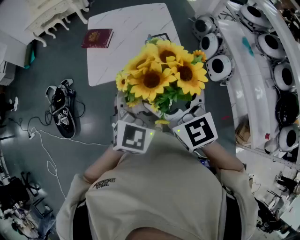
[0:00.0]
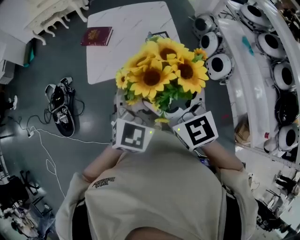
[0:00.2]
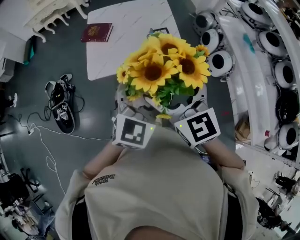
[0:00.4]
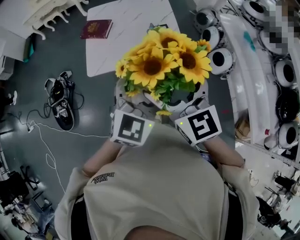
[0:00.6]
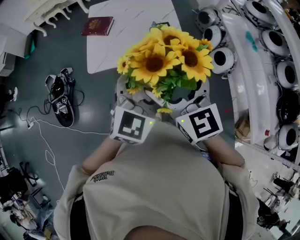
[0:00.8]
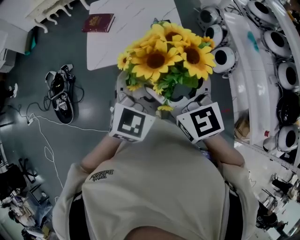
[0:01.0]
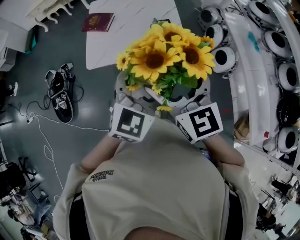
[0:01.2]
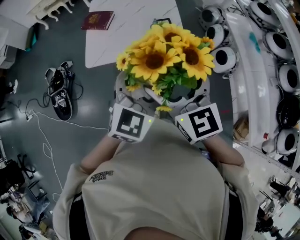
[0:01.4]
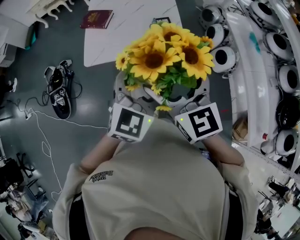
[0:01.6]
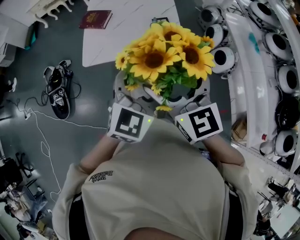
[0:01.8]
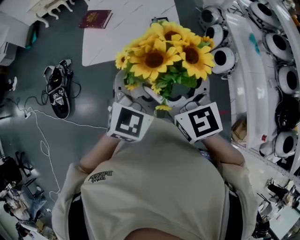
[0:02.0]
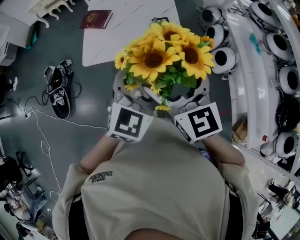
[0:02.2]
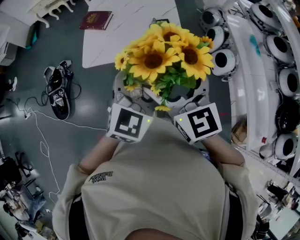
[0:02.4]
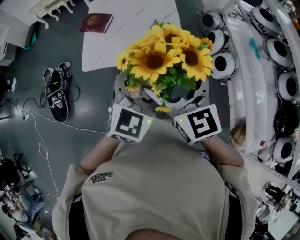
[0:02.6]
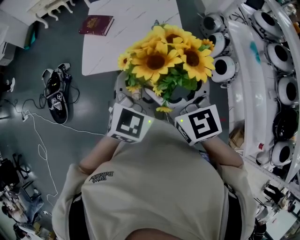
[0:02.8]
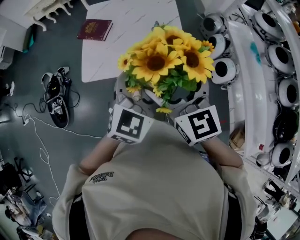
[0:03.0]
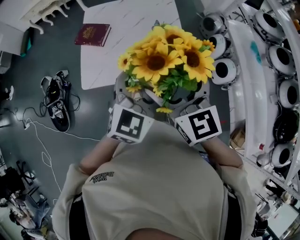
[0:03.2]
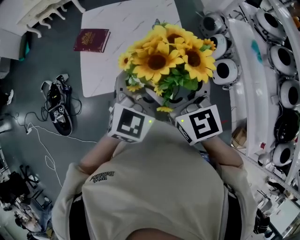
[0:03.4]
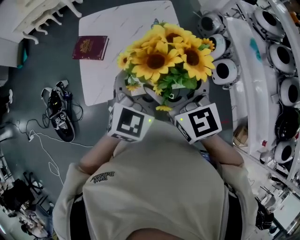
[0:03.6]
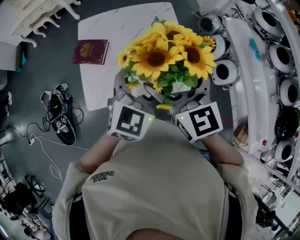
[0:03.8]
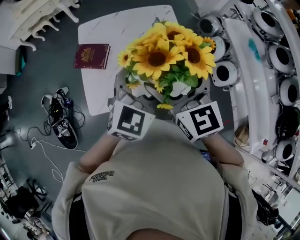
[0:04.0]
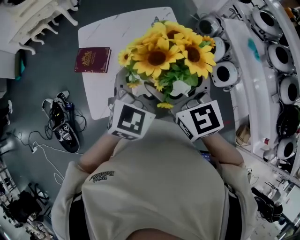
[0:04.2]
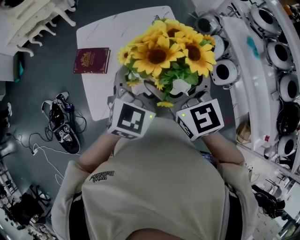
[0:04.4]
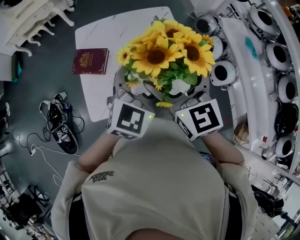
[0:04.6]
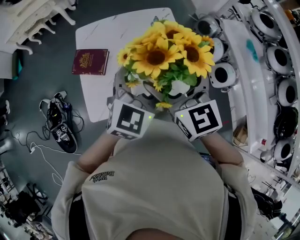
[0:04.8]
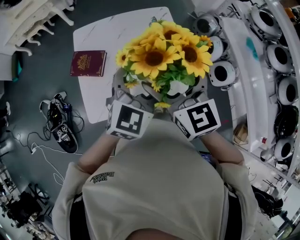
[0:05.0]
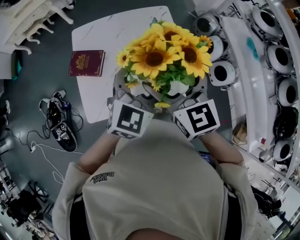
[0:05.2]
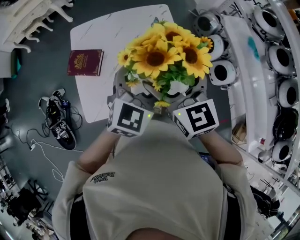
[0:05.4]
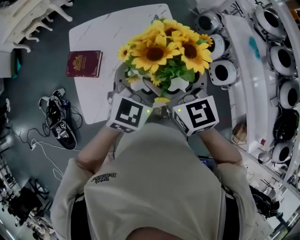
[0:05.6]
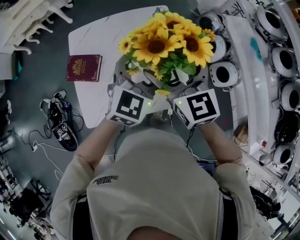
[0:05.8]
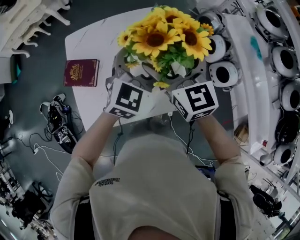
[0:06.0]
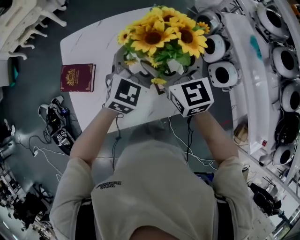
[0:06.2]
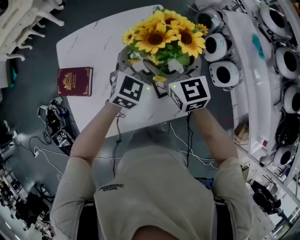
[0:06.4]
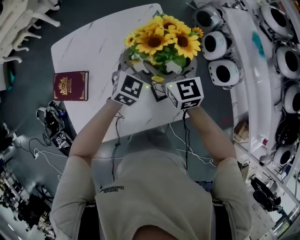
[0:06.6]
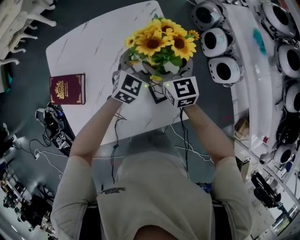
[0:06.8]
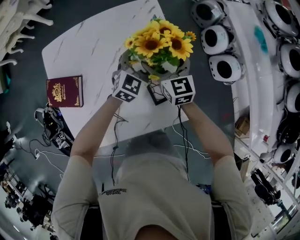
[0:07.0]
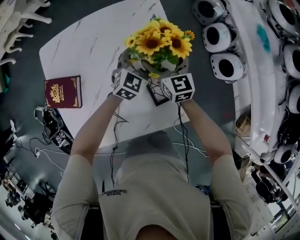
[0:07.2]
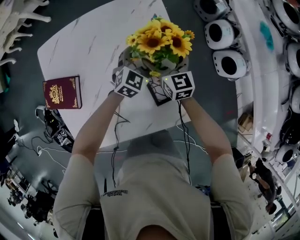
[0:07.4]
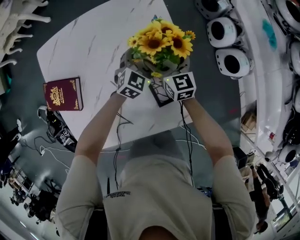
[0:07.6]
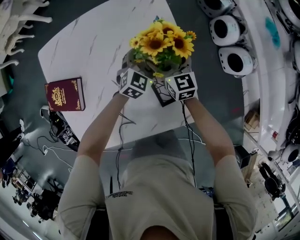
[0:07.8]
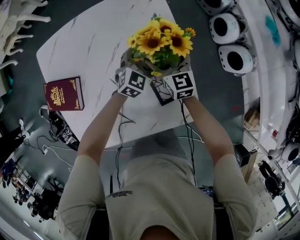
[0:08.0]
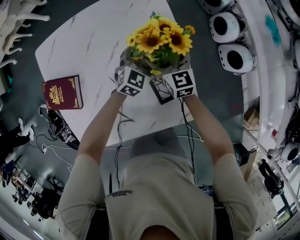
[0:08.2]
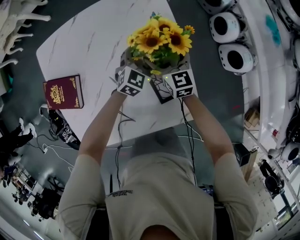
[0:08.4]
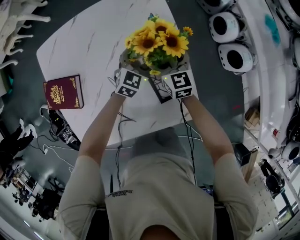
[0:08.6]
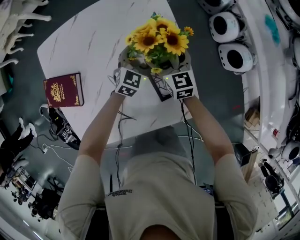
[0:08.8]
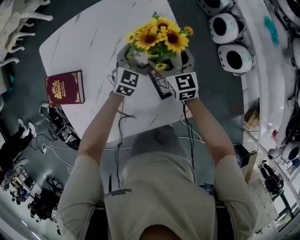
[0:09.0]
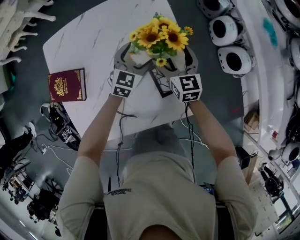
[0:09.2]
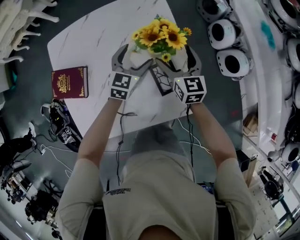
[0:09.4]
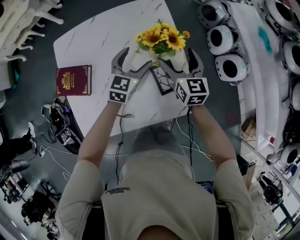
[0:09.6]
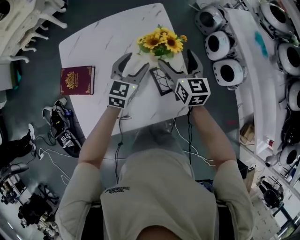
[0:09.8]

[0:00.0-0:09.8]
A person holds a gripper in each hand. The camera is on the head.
0:00.0 to 0:01.4: The grippers move only a little.
0:01.4 to 0:02.8: Both grippers travel together forward, some 5 cm.
0:02.8 to 0:04.2: The grippers both shift forward by some 25 cm.
0:04.2 to 0:05.6: Both grippers move forward, some 10 cm.
0:05.6 to 0:07.0: Both grippers move downward and forward, some 35 cm.
0:07.0 to 0:08.4: Both grippers travel together downward, roughly 10 cm.
0:08.4 to 0:09.8: The left gripper goes some 20 cm upward and backward. Meanwhile the right gripper travels upward by about 15 cm.

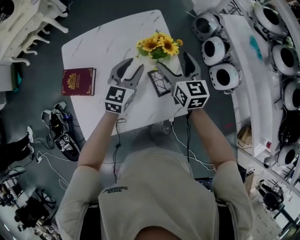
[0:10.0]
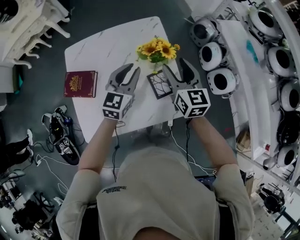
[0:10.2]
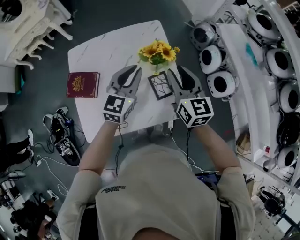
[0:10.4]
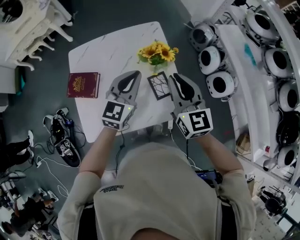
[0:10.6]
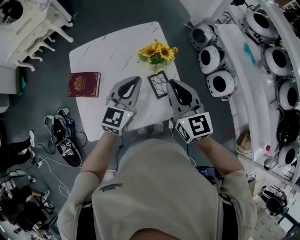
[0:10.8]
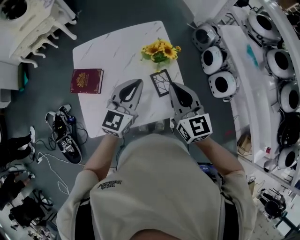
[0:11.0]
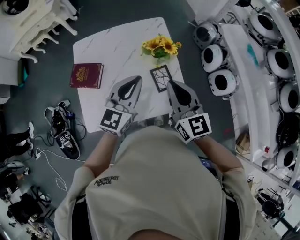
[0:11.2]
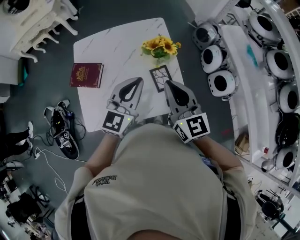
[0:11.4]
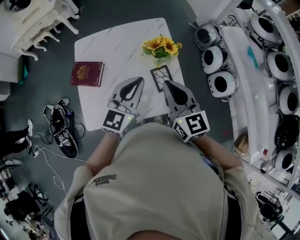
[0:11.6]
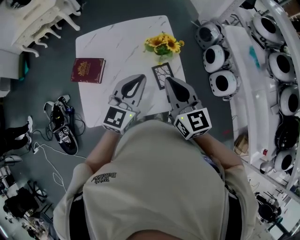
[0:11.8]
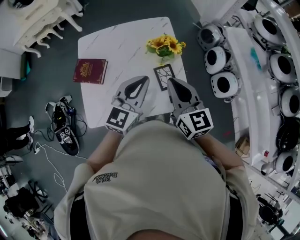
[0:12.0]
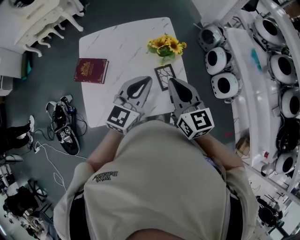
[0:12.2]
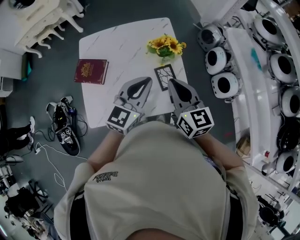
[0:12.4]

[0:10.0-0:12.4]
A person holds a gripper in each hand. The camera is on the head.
0:10.0 to 0:11.2: Both grippers move backward and upward, approximately 20 cm. The left gripper closes its fingers. Meanwhile the right gripper closes up.
0:11.2 to 0:12.4: The grippers move only a little.

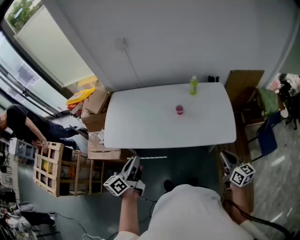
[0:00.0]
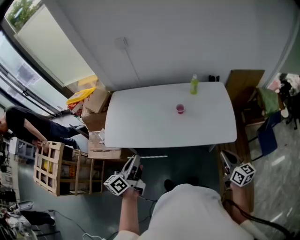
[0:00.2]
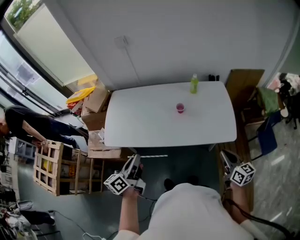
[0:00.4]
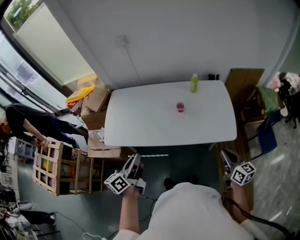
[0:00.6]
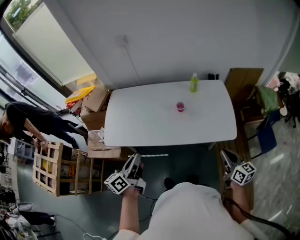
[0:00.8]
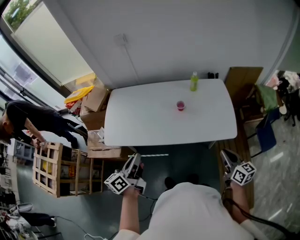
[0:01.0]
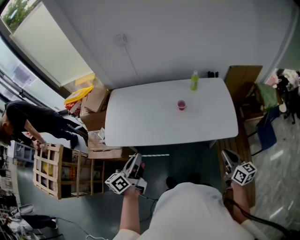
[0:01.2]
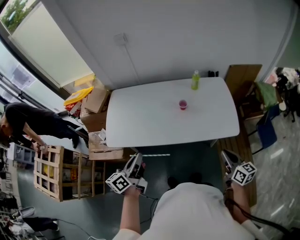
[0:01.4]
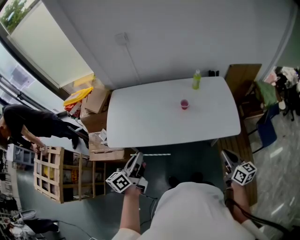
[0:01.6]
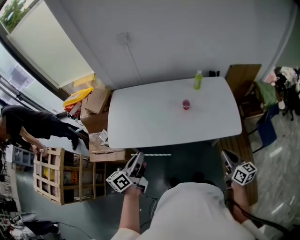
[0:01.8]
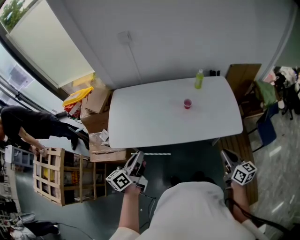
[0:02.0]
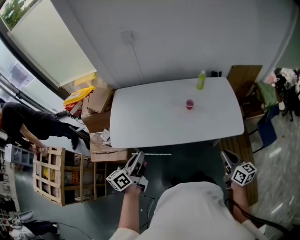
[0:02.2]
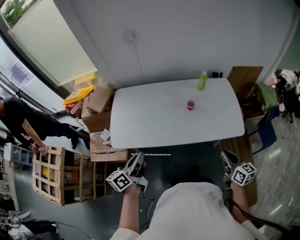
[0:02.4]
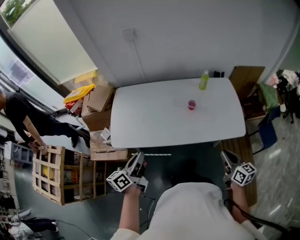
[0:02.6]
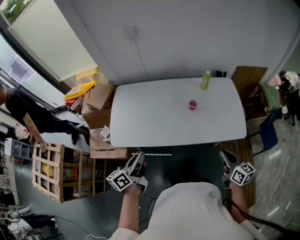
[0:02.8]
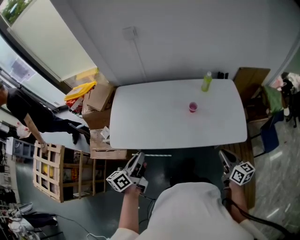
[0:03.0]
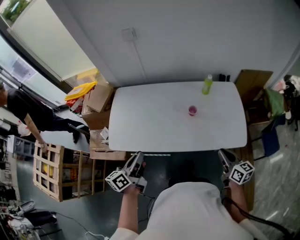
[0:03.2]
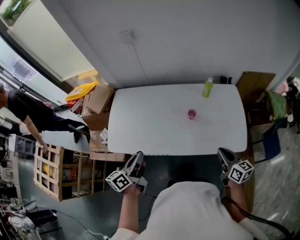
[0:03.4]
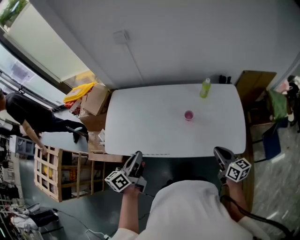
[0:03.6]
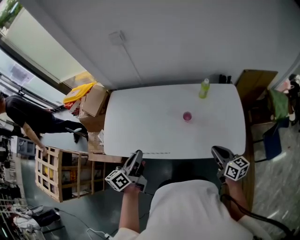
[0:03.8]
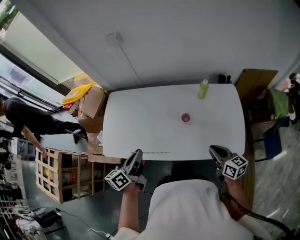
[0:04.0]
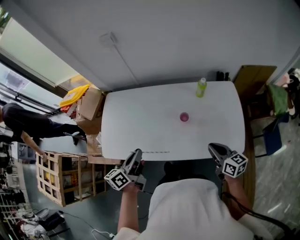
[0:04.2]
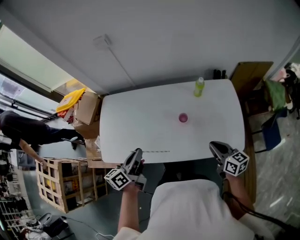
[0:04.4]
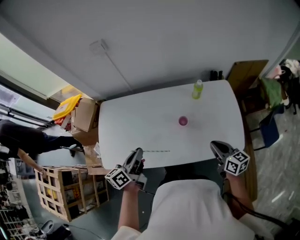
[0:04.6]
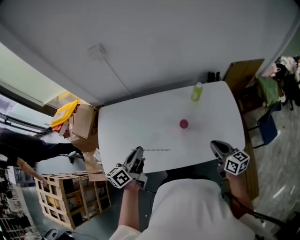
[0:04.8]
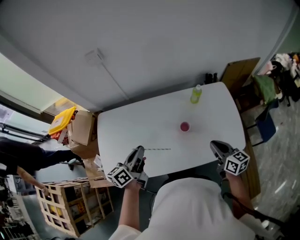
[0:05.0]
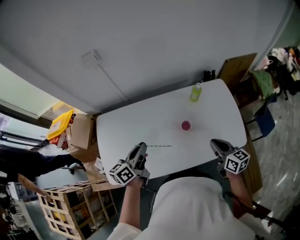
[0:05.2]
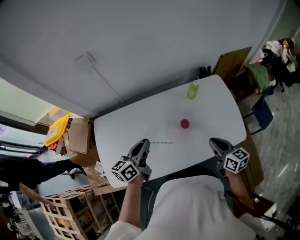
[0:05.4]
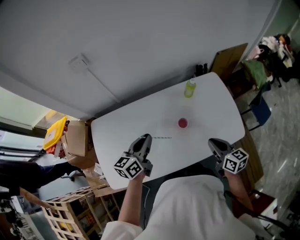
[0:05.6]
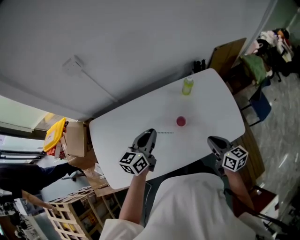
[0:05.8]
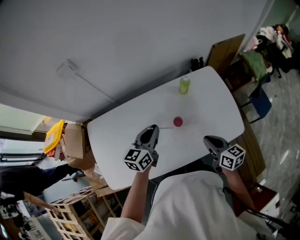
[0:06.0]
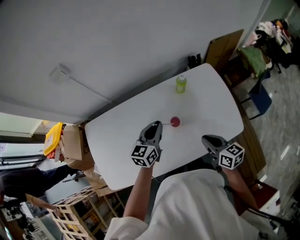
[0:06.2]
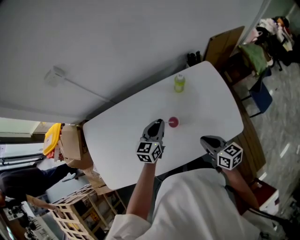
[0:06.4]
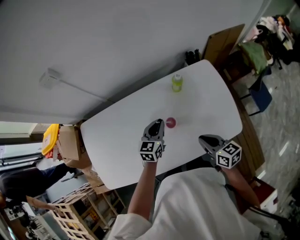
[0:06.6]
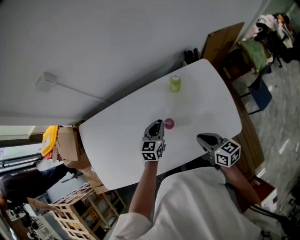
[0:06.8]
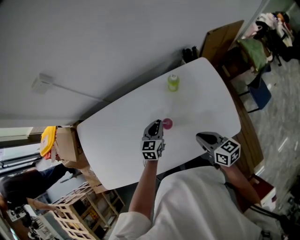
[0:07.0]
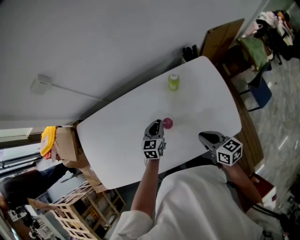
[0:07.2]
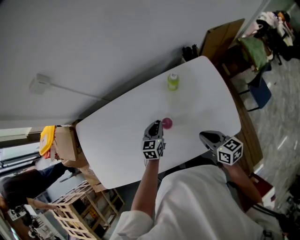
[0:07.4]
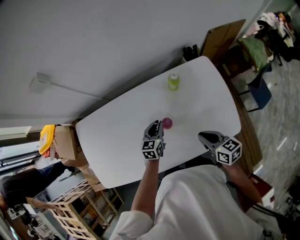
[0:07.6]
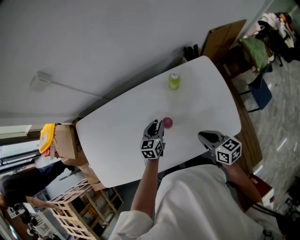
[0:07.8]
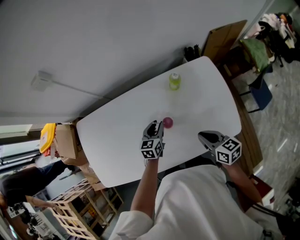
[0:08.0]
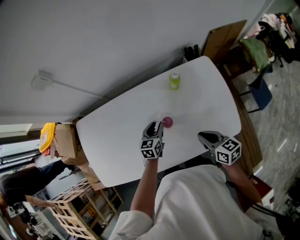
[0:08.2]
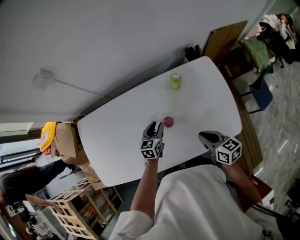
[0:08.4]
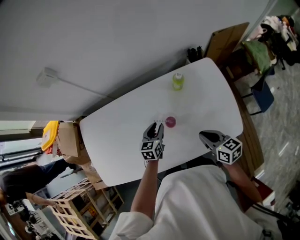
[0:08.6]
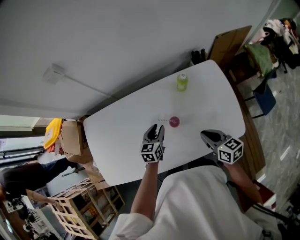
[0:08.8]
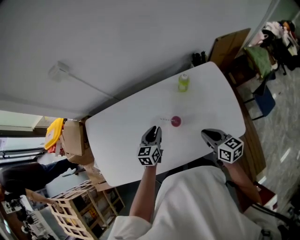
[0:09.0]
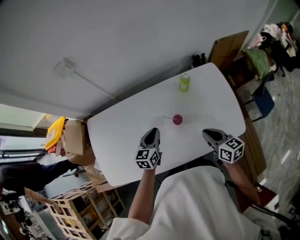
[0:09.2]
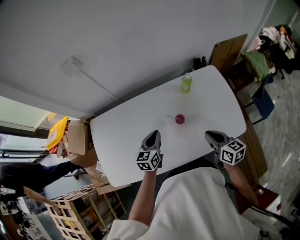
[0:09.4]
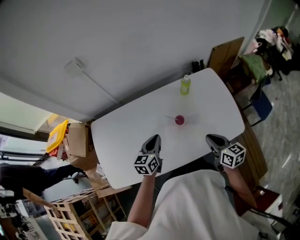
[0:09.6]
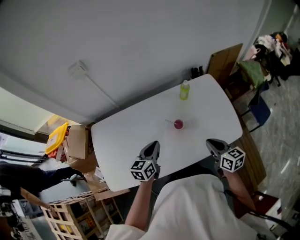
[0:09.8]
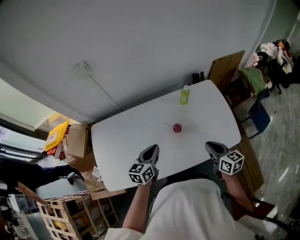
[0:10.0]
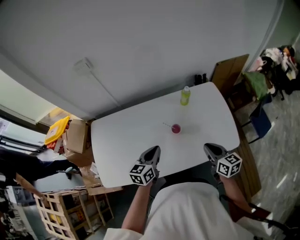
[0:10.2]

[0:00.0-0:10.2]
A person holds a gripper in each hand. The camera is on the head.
0:00.0 to 0:01.4: The grippers make only small movements.
0:01.4 to 0:03.0: The left gripper changes place by approximately 5 cm; the right gripper moves to the left and forward, approximately 10 cm.
0:03.0 to 0:04.4: The left gripper travels forward and to the right by about 20 cm. The right gripper travels forward by approximately 15 cm.
0:04.4 to 0:05.8: The right gripper ends up some 5 cm from where it was, while the left gripper travels forward by about 15 cm, and changes its angle by some 30 degrees.
0:05.8 to 0:07.2: The right gripper moves downward, some 5 cm. Meanwhile the left gripper travels downward and to the right by some 25 cm, and rotates roughly 20 degrees.
0:07.2 to 0:08.8: The left gripper goes about 5 cm to the left, and opens its fingers.
0:08.8 to 0:10.2: The left gripper goes about 20 cm upward and backward, and closes; the right gripper travels backward by about 5 cm.

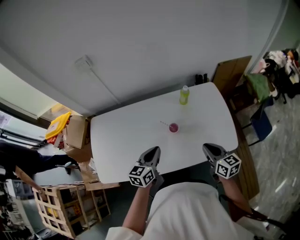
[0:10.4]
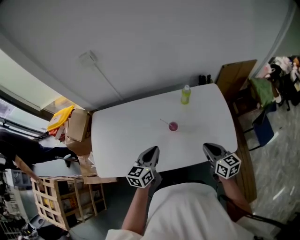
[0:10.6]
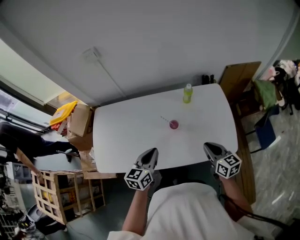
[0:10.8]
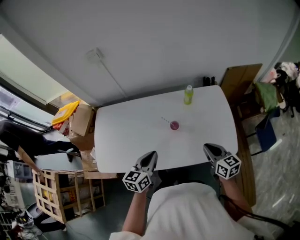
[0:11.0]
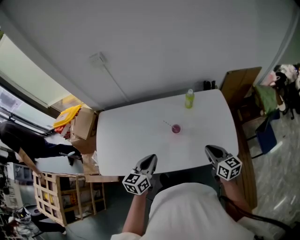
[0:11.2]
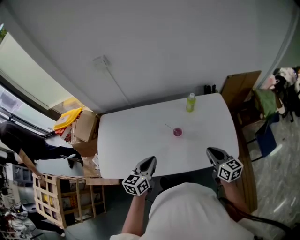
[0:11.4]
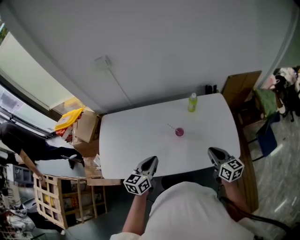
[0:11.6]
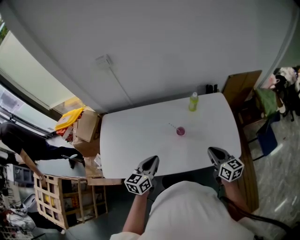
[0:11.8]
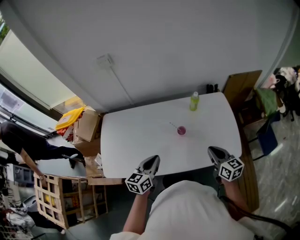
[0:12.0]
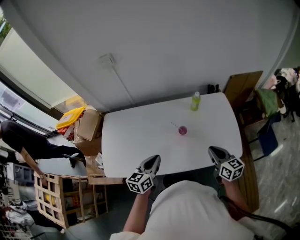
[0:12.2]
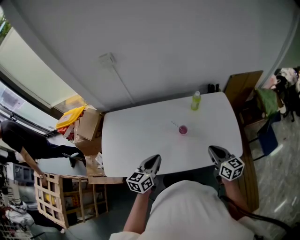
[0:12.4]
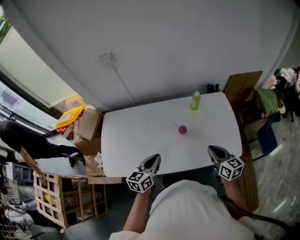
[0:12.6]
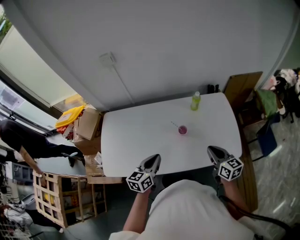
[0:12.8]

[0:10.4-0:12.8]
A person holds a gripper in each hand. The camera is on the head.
0:10.4 to 0:11.6: The left gripper shifts about 5 cm backward.
0:11.6 to 0:12.8: The grippers stay close to where they were, moving slightly.
